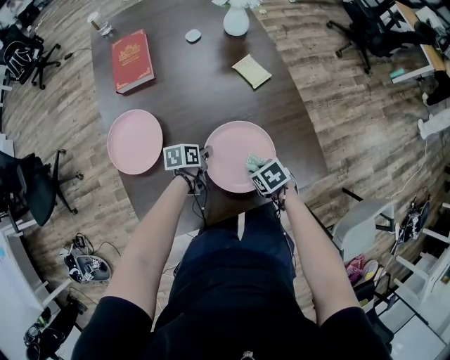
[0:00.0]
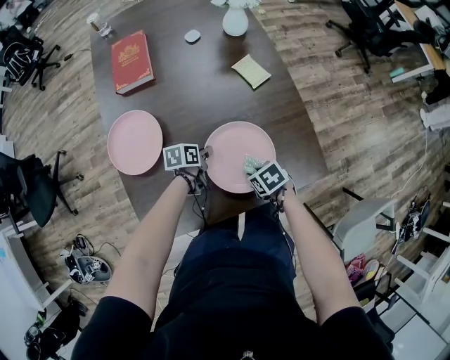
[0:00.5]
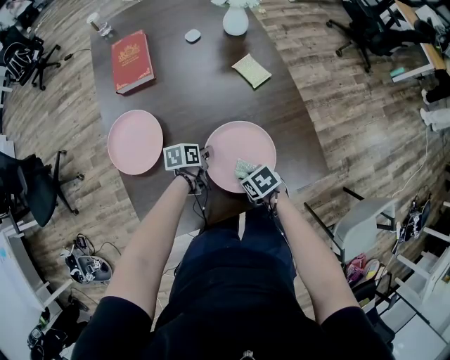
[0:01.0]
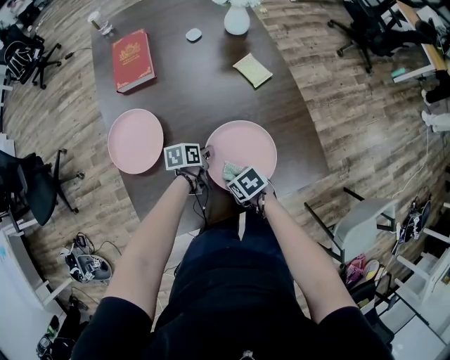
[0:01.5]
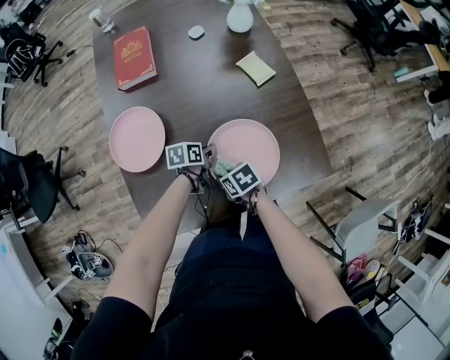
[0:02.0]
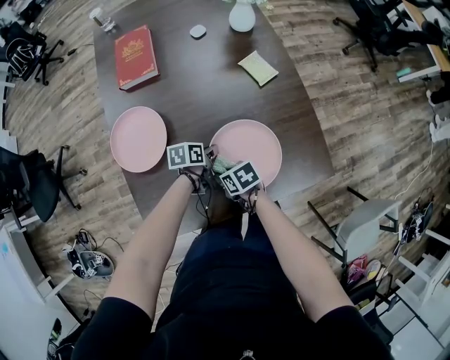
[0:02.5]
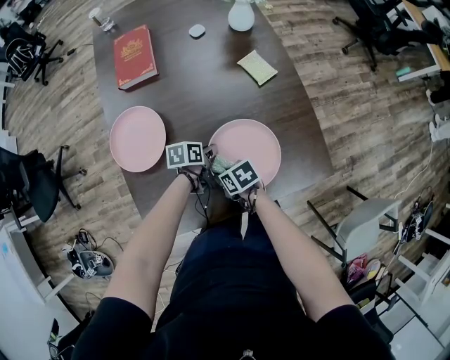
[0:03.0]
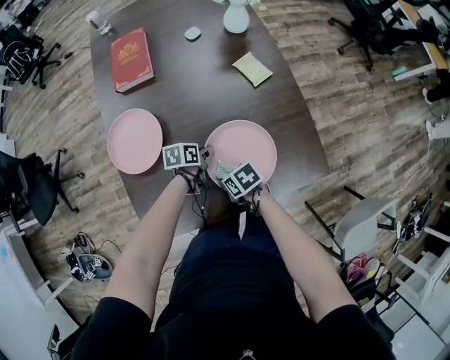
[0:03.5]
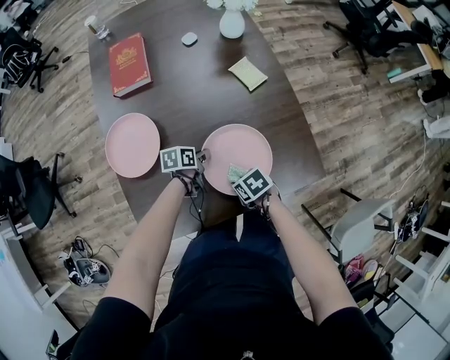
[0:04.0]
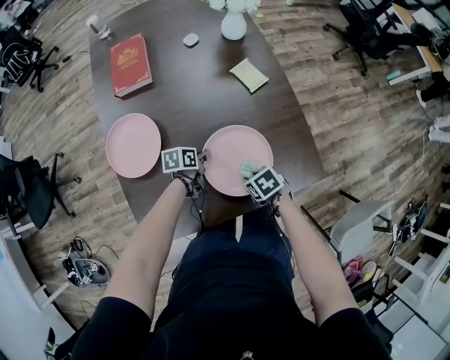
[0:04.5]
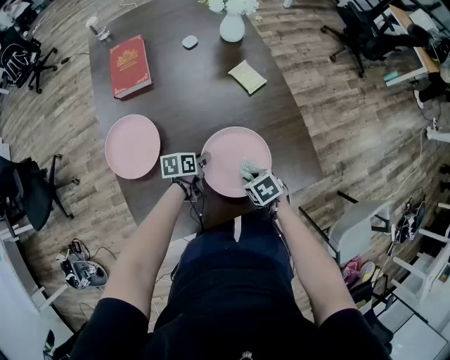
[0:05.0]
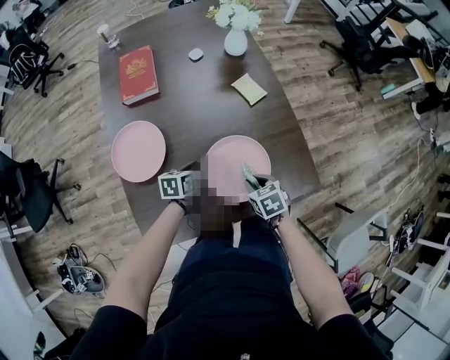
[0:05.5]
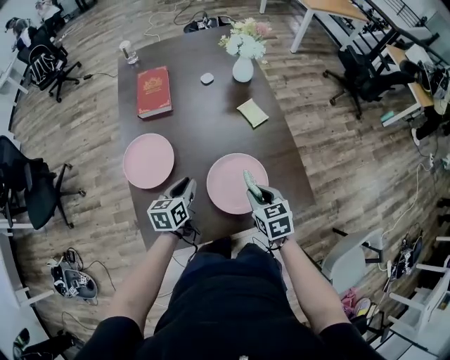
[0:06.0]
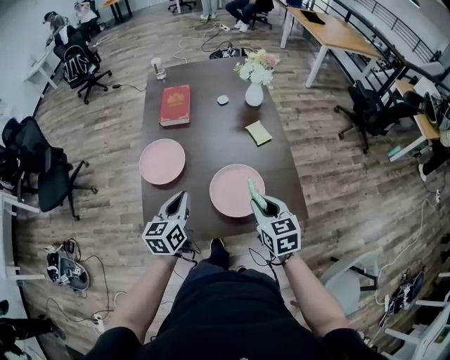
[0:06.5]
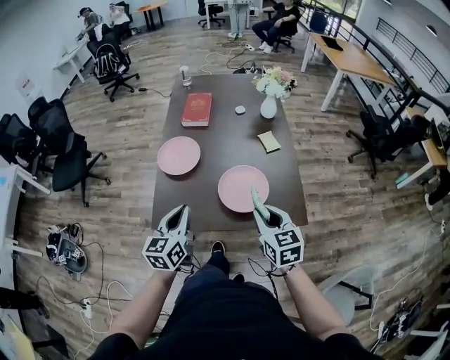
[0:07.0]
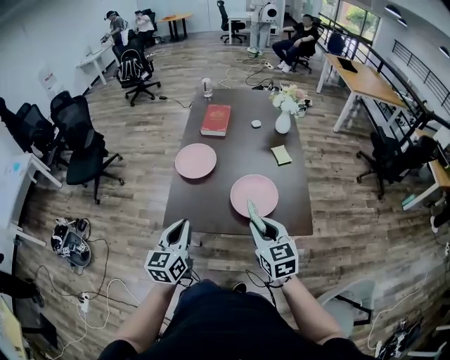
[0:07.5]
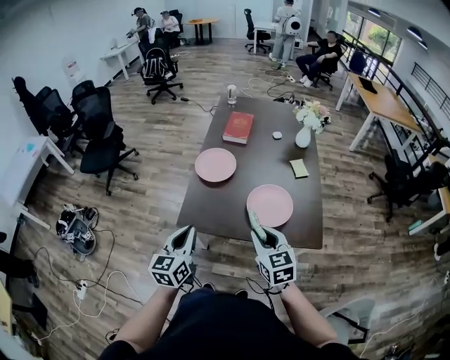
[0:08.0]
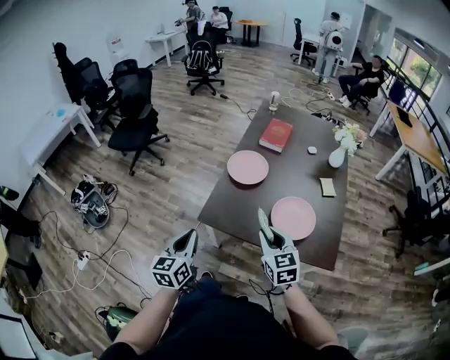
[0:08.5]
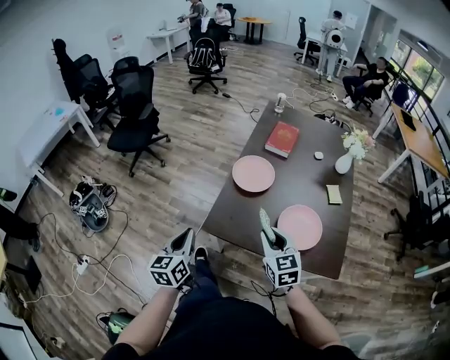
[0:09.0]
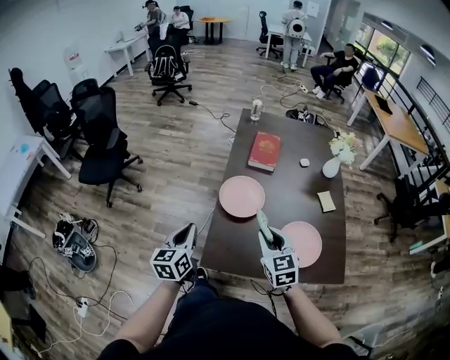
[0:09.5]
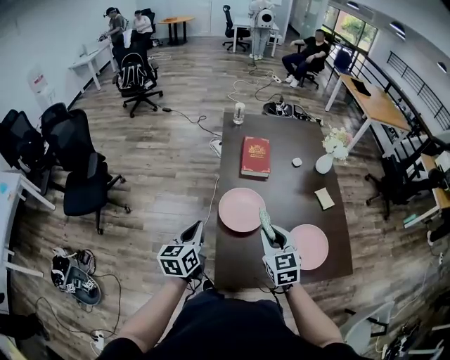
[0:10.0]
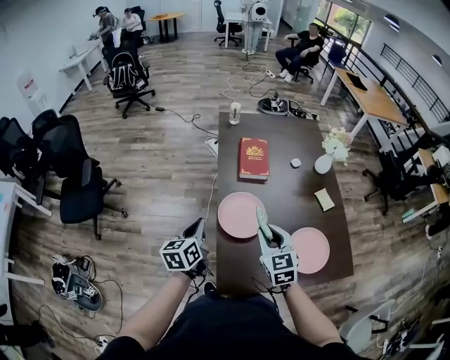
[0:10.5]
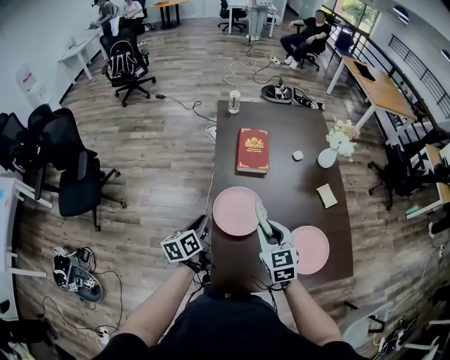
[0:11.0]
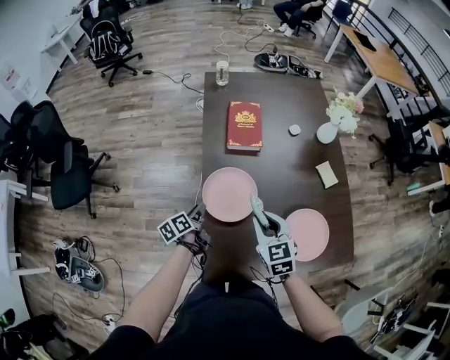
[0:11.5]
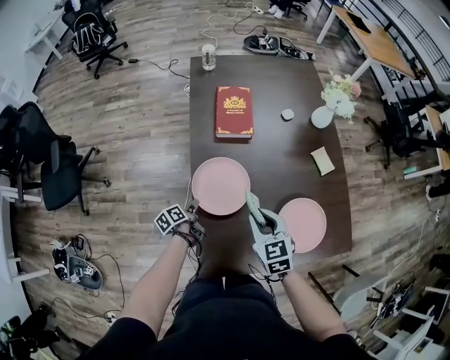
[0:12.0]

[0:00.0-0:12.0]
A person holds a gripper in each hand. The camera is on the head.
0:00.0 to 0:02.0: The right gripper ends up roughly 10 cm from where it was.
0:02.0 to 0:04.0: The right gripper changes place by some 5 cm.
0:04.0 to 0:06.0: The right gripper moves upward, roughly 15 cm, and swivels approximately 40 degrees.
0:06.0 to 0:08.0: The right gripper changes place by roughly 25 cm, and changes its angle by approximately 30 degrees.
0:08.0 to 0:10.0: The right gripper ends up approximately 35 cm from where it was.
0:10.0 to 0:12.0: The right gripper goes approximately 10 cm downward.

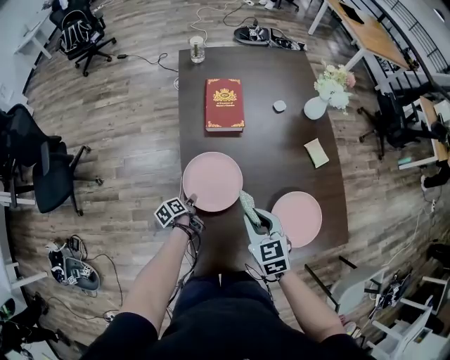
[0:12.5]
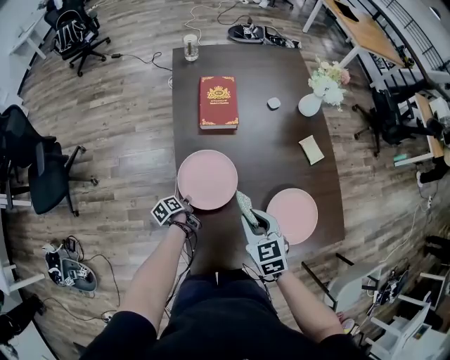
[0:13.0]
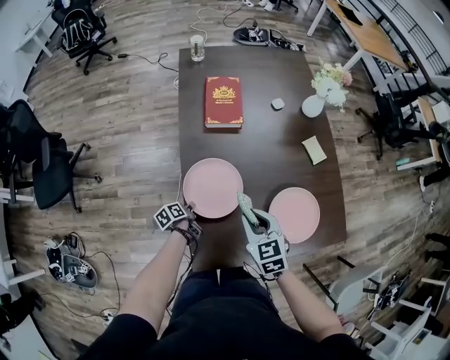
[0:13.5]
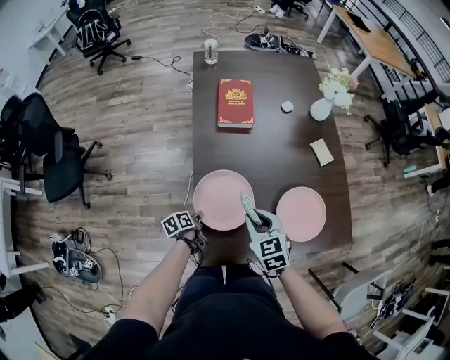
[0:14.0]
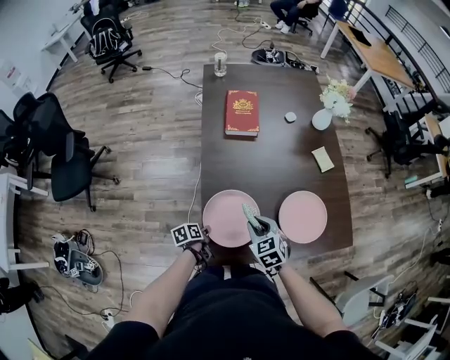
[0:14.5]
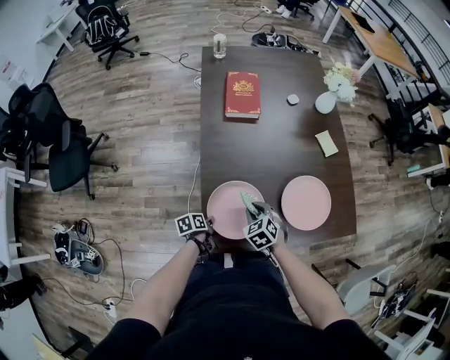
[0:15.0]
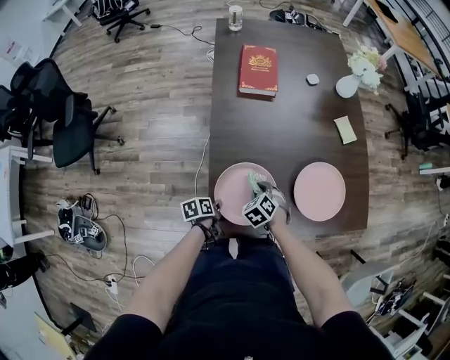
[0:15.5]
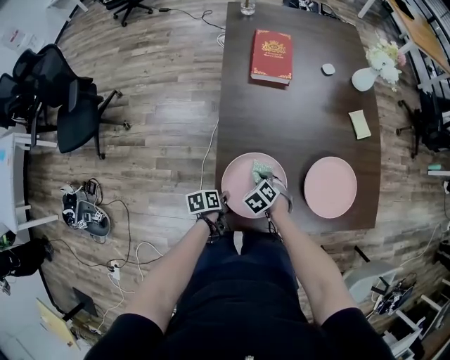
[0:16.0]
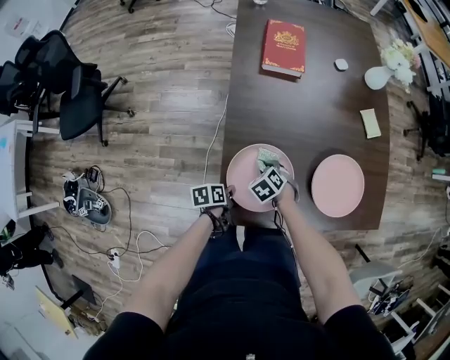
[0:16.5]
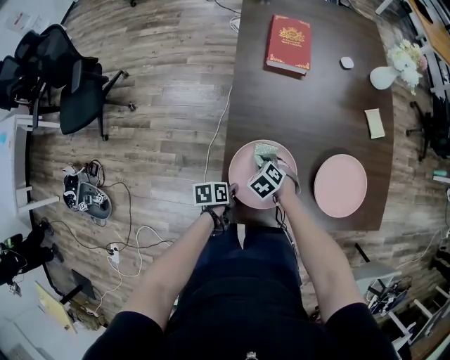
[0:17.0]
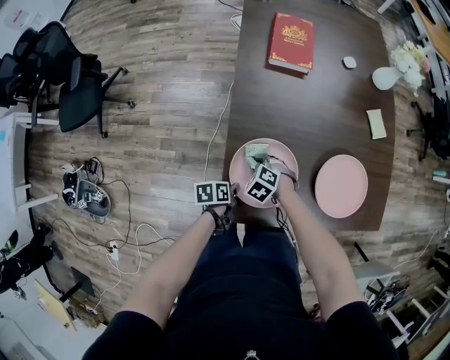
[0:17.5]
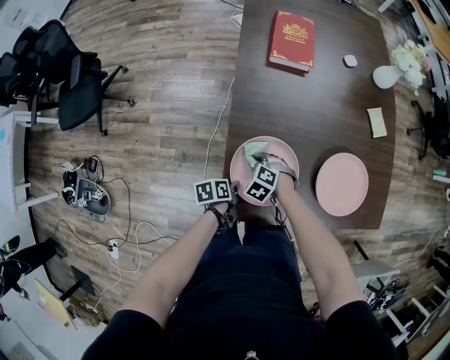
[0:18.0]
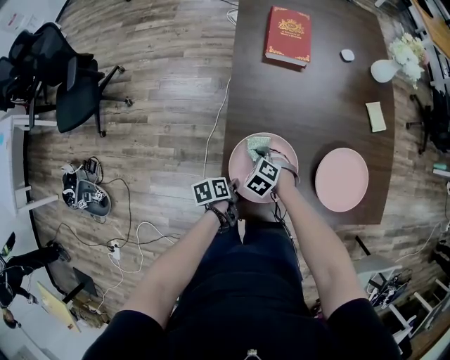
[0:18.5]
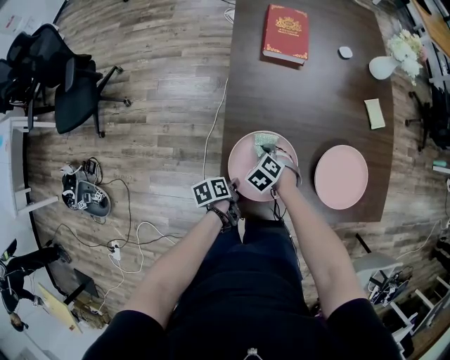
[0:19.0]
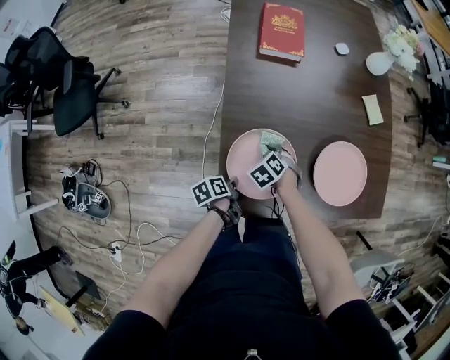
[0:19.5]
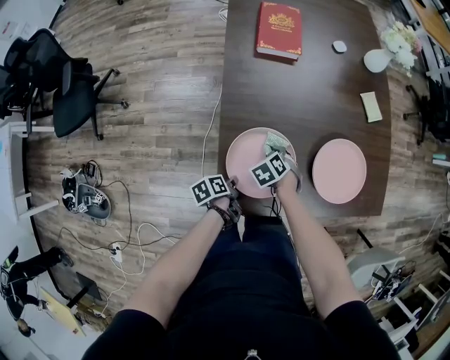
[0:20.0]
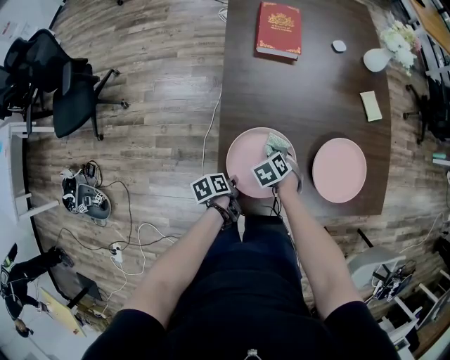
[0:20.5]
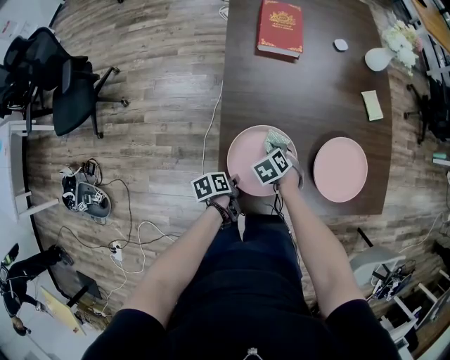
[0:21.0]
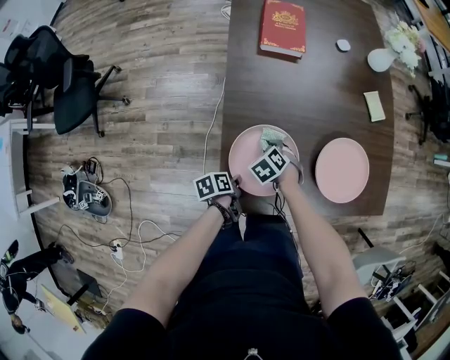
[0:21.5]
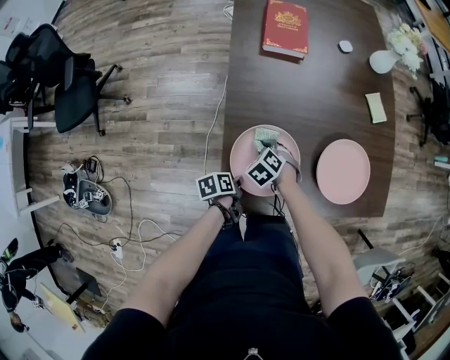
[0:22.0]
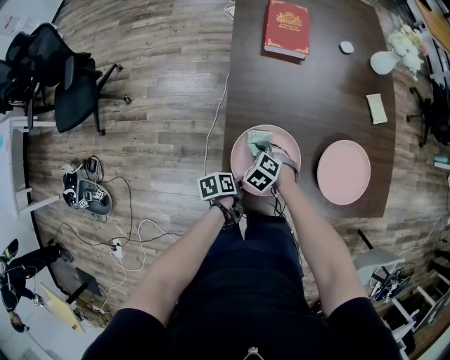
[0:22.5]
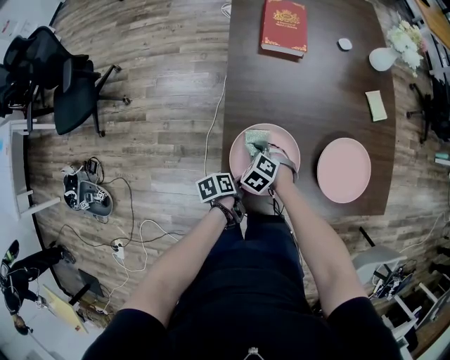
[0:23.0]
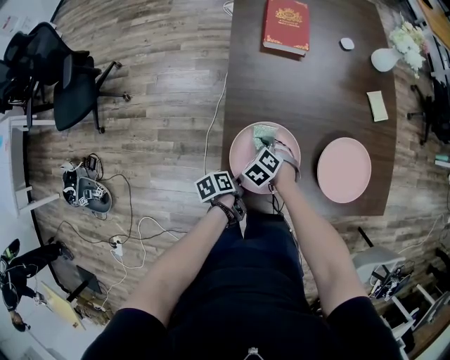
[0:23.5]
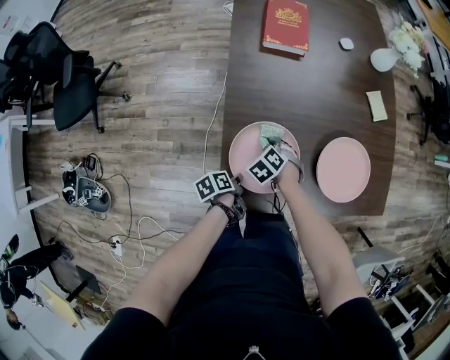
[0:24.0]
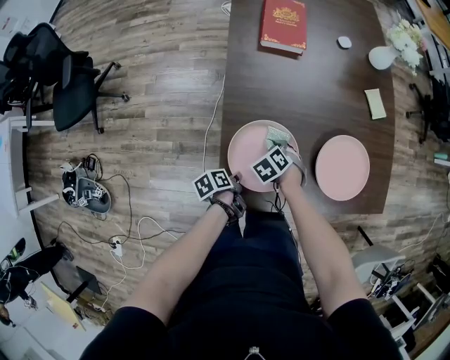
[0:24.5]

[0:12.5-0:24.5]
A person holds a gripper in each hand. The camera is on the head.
0:12.5 to 0:14.5: The right gripper changes place by some 10 cm.
0:14.5 to 0:16.5: The right gripper heads downward, covering some 20 cm, and turns by some 30 degrees.
0:18.5 to 0:20.5: The right gripper changes place by roughly 5 cm, and turns by some 30 degrees.
0:20.5 to 0:22.5: The right gripper ends up about 10 cm from where it was, and changes its angle by roughly 30 degrees.
0:22.5 to 0:24.5: The right gripper ends up some 5 cm from where it was.

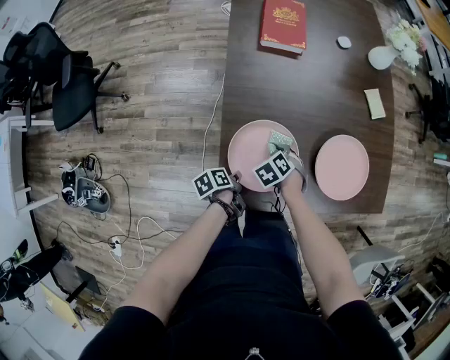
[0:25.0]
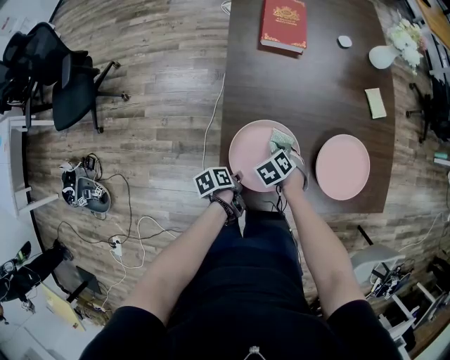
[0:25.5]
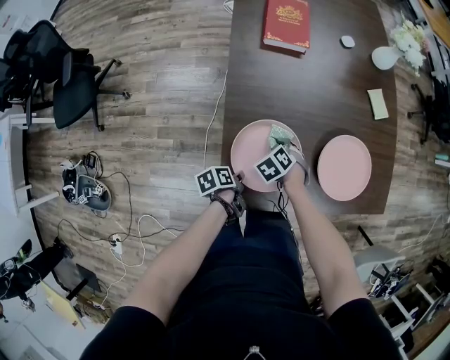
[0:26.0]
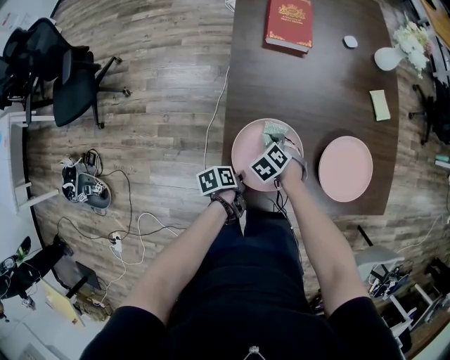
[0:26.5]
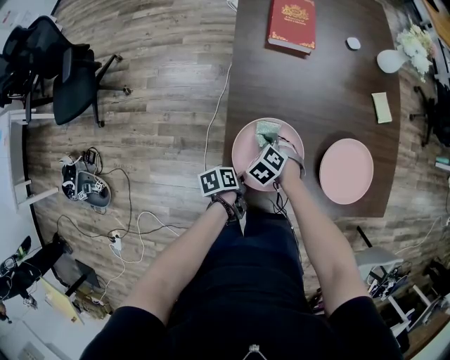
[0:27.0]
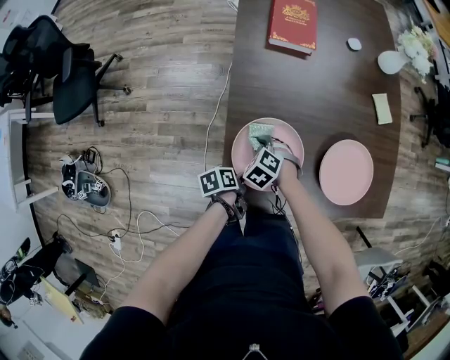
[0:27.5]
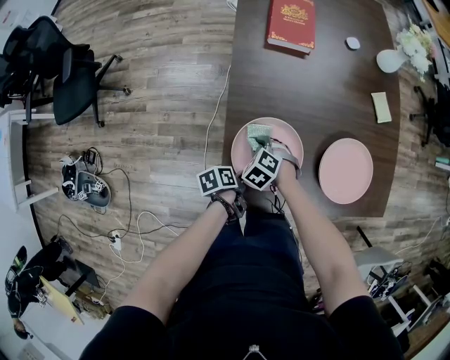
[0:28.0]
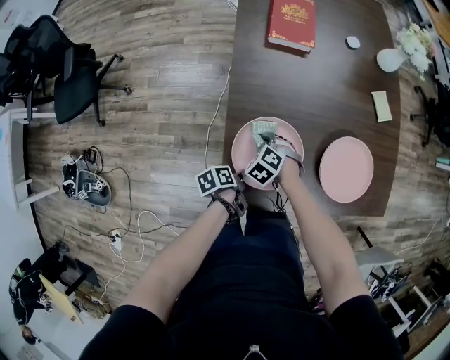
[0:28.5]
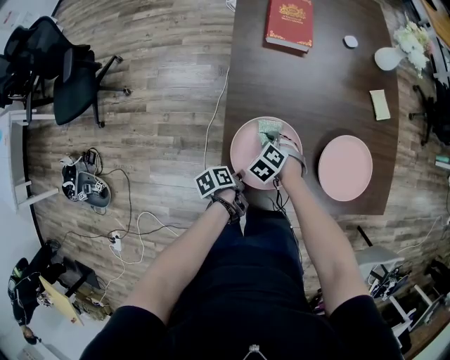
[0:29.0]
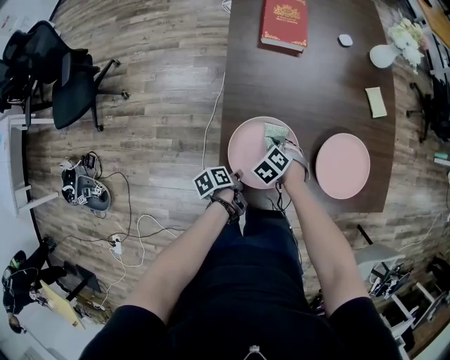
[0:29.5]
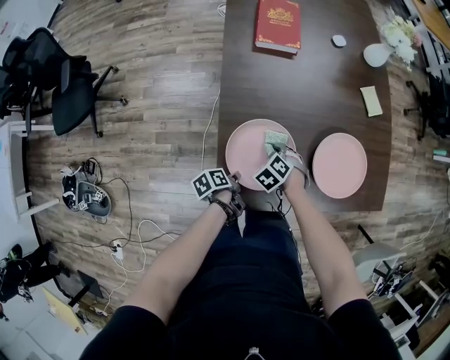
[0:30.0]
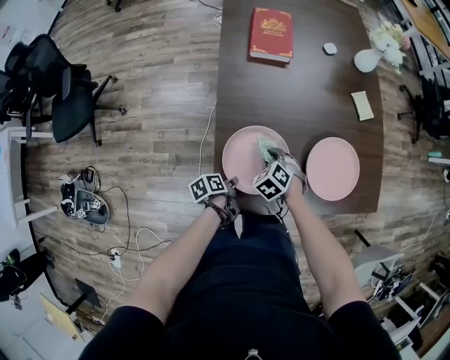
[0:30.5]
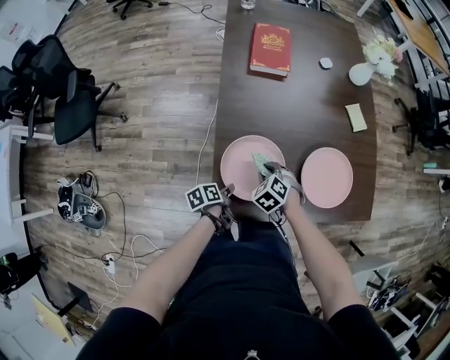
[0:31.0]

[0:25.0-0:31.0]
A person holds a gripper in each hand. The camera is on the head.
0:25.0 to 0:27.0: The right gripper ends up some 5 cm from where it was.
0:29.0 to 0:31.0: The right gripper travels upward by approximately 5 cm.
